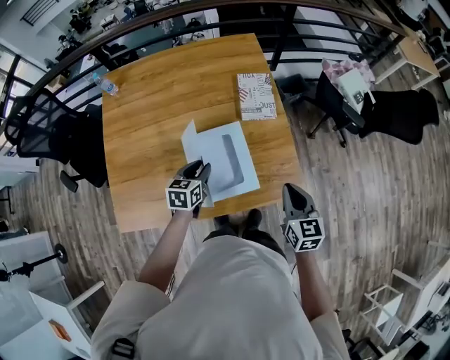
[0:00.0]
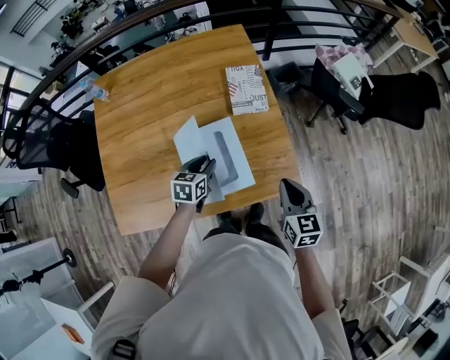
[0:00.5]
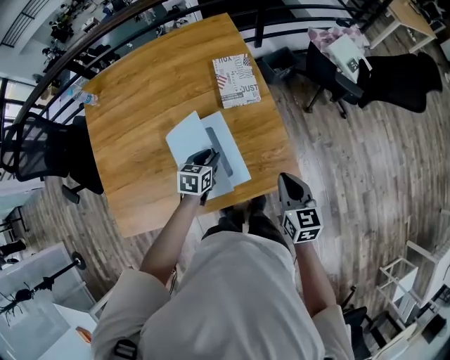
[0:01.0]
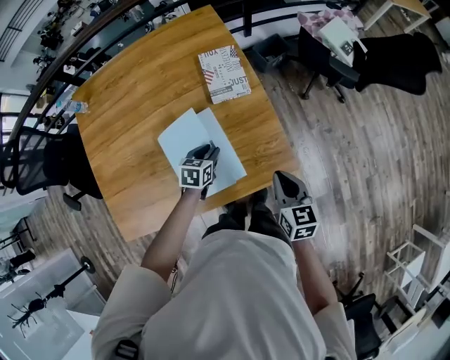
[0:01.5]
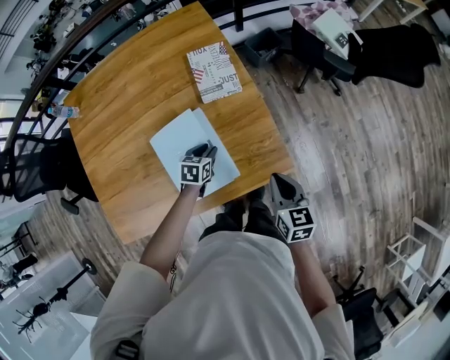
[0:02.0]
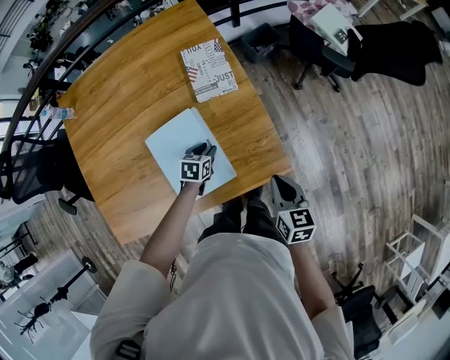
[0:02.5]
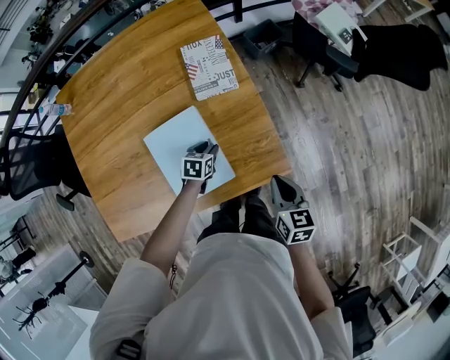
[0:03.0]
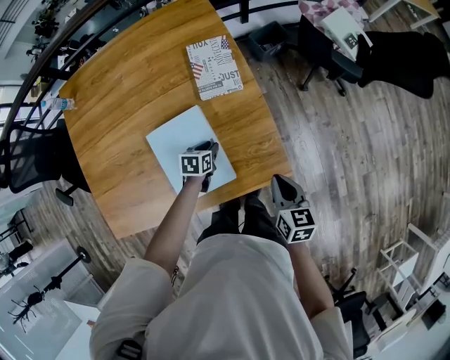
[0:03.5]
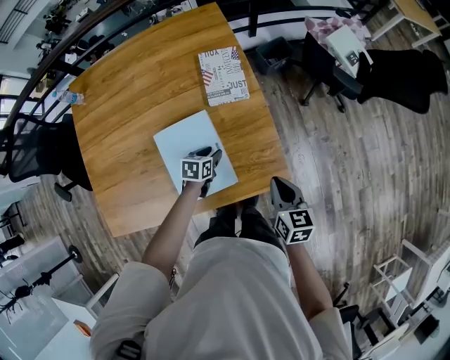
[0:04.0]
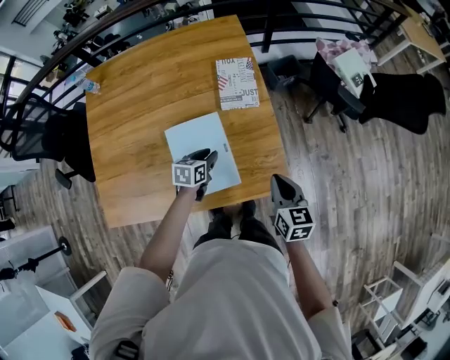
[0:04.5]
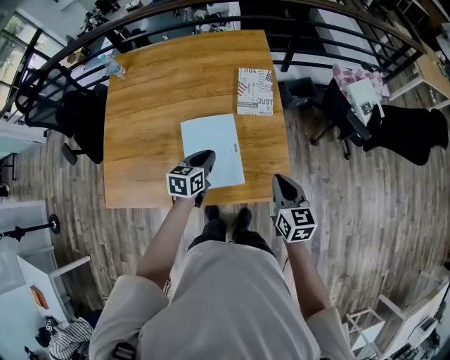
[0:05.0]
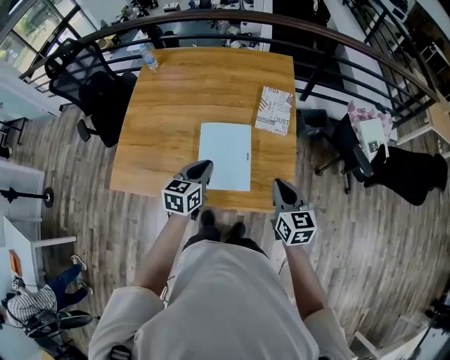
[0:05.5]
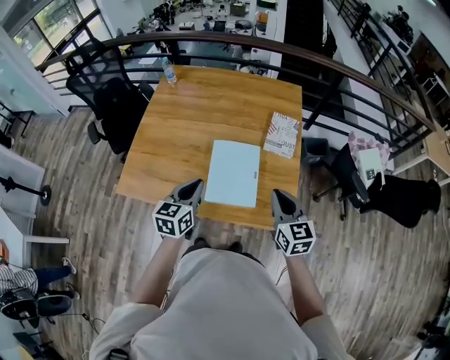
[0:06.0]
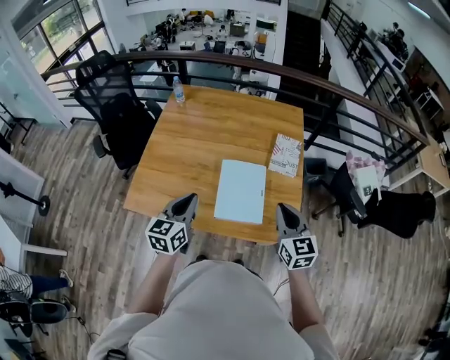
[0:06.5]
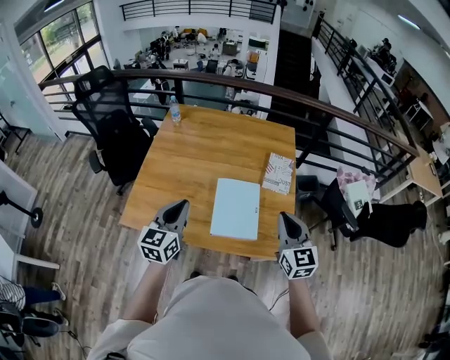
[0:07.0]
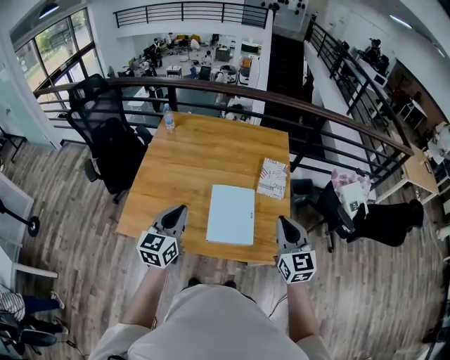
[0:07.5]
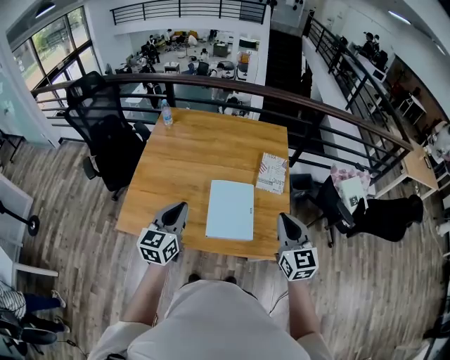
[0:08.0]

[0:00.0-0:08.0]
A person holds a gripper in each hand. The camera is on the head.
0:00.0 to 0:02.0: The right gripper goes roughly 10 cm downward and to the right. Meanwhile the left gripper heads downward, to the right and forward, covering approximately 20 cm, and rotates approximately 20 degrees.
0:02.0 to 0:04.0: There are only small adjustments of the grippers.
0:04.0 to 0:06.0: The left gripper heads upward, covering some 30 cm, points its fingers approximately 30 degrees further upward, and closes. Meanwhile the right gripper travels upward by roughly 15 cm, and swivels about 40 degrees.
0:06.0 to 0:08.0: The right gripper is displaced upward by approximately 10 cm. Meanwhile the left gripper goes approximately 15 cm upward and to the left.

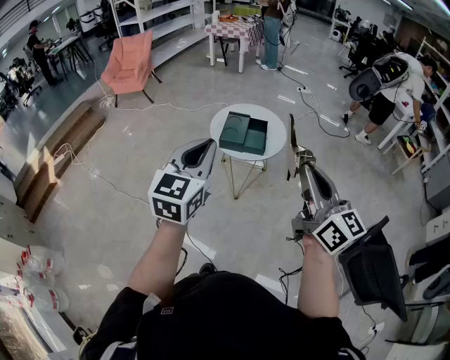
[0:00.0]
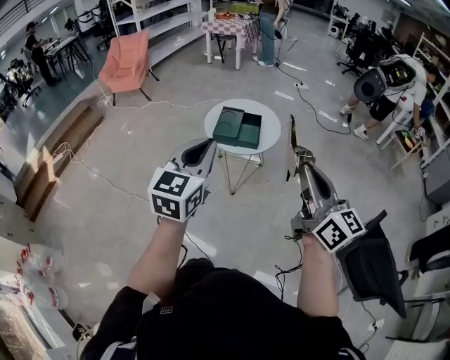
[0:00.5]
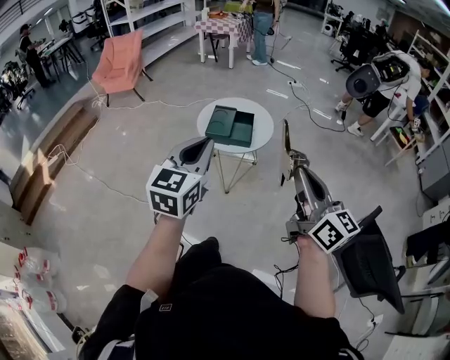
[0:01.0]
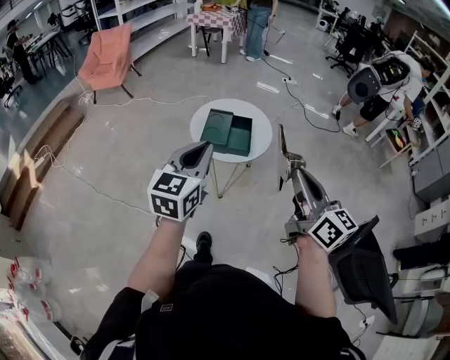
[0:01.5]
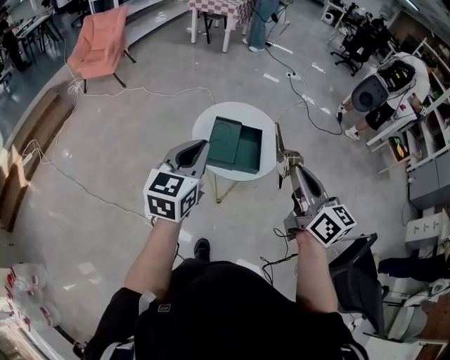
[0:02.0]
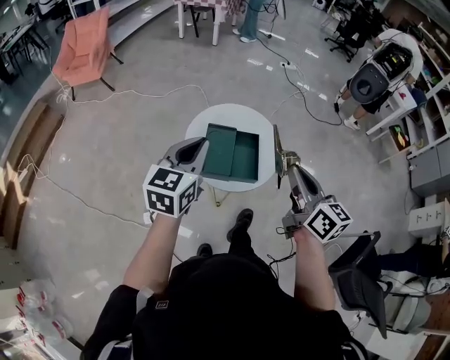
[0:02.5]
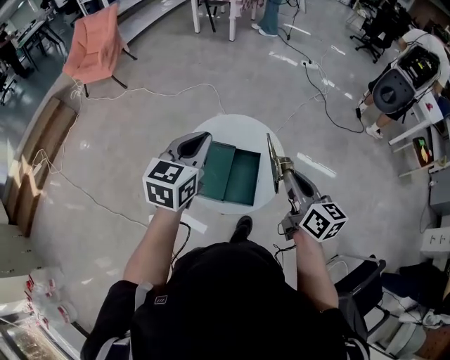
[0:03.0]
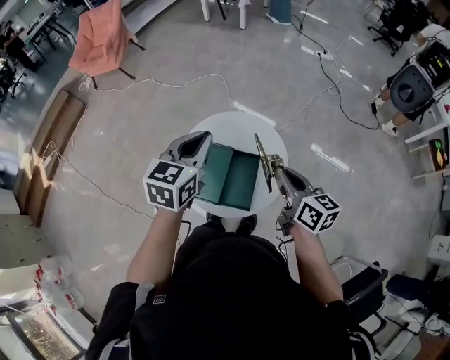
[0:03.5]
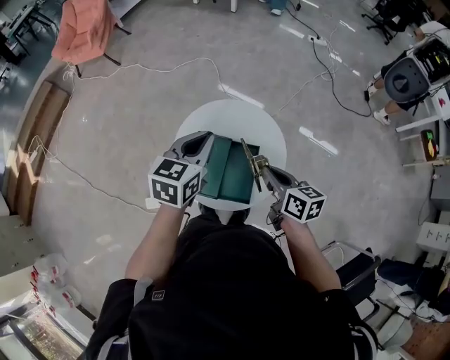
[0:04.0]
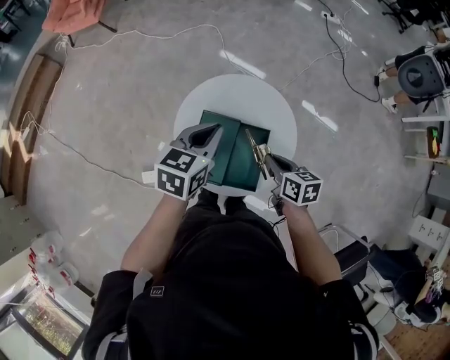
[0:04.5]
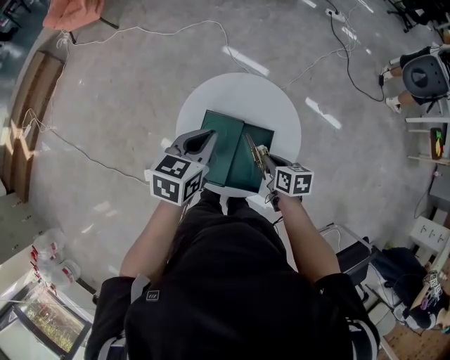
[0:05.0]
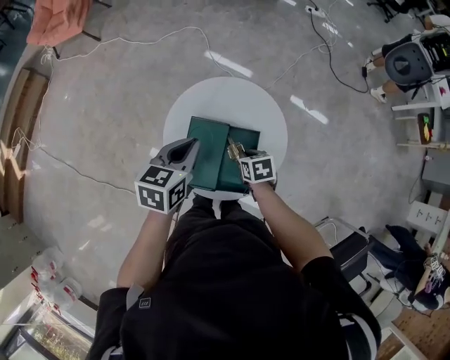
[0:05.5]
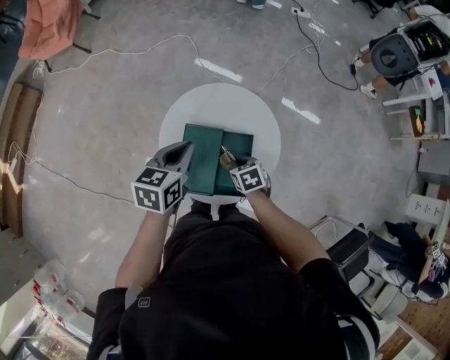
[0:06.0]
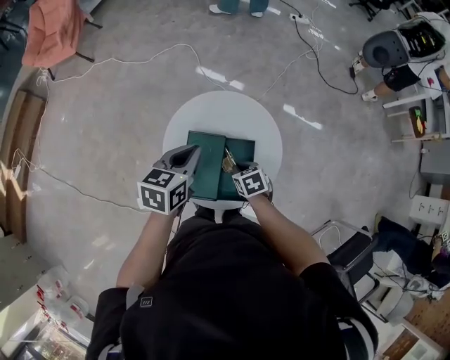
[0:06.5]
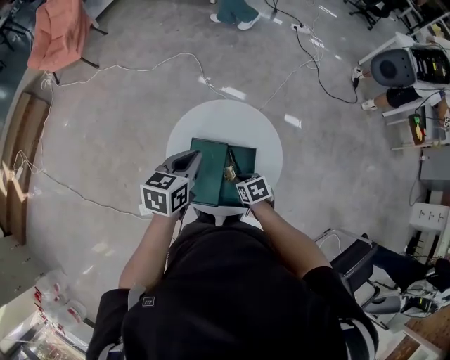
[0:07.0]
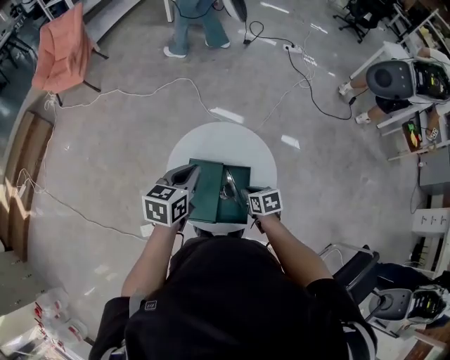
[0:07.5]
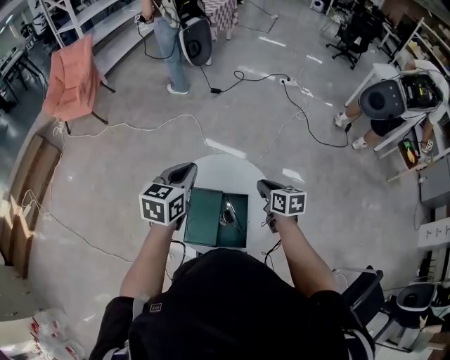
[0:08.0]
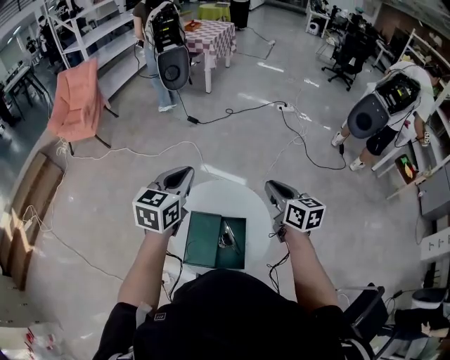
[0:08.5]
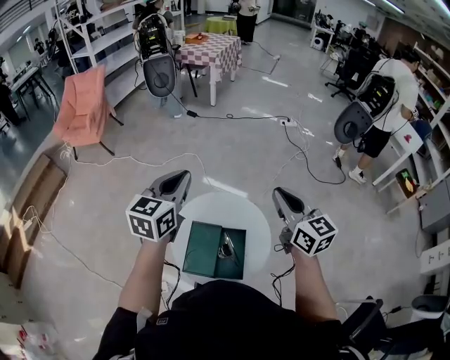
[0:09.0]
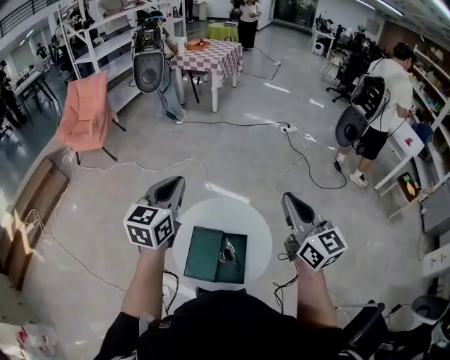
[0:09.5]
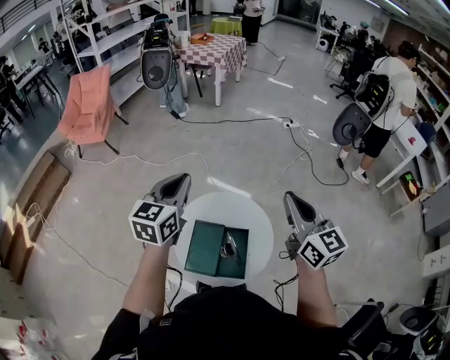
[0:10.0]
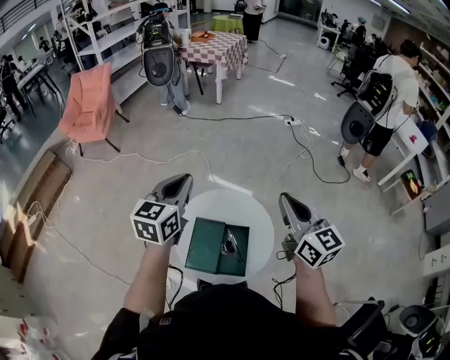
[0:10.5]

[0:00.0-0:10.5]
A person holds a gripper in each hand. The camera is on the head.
0:00.0 to 0:02.0: The two grippers go about 25 cm forward.
0:02.0 to 0:04.0: The left gripper is displaced forward, downward and to the right by roughly 30 cm, while the right gripper is displaced forward and downward by about 35 cm, and rotates about 30 degrees.
0:04.0 to 0:06.5: The right gripper moves downward, about 20 cm, and points its fingers some 40 degrees further downward, while the left gripper heads downward, covering roughly 10 cm.
0:06.5 to 0:08.5: The right gripper heads upward, covering some 30 cm, and tilts its fingers about 40 degrees upward, while the left gripper is displaced upward and forward by some 20 cm, and rotates approximately 20 degrees.
0:08.5 to 0:10.5: The right gripper travels upward and backward by some 15 cm, and rotates approximately 20 degrees.

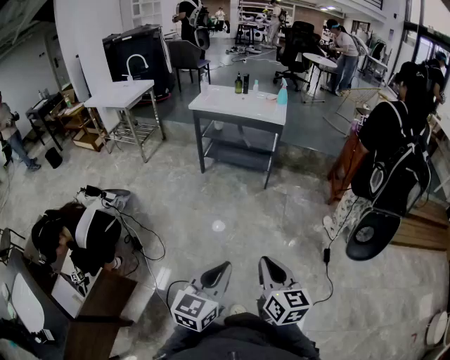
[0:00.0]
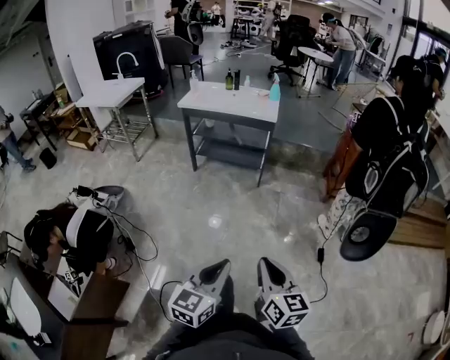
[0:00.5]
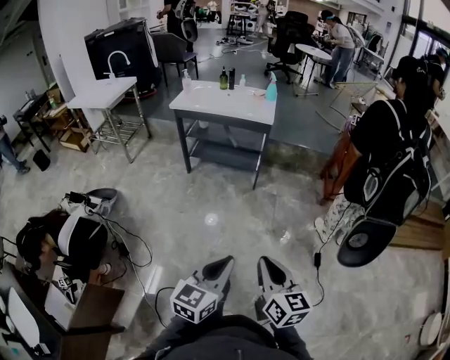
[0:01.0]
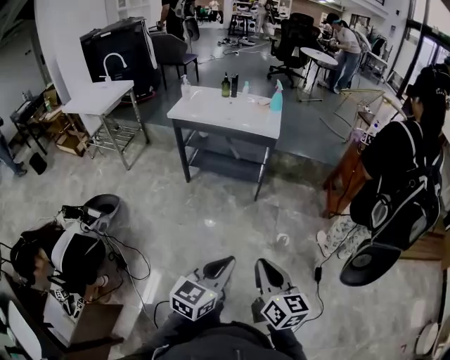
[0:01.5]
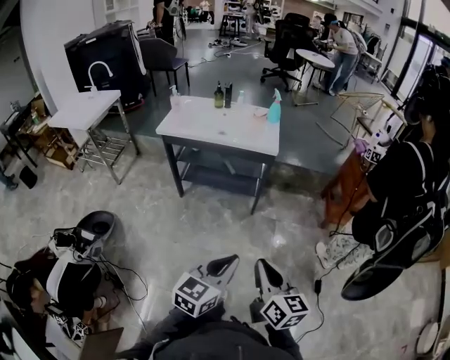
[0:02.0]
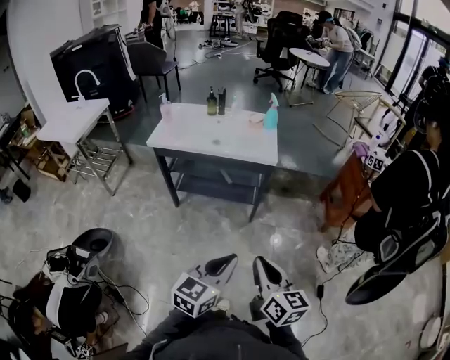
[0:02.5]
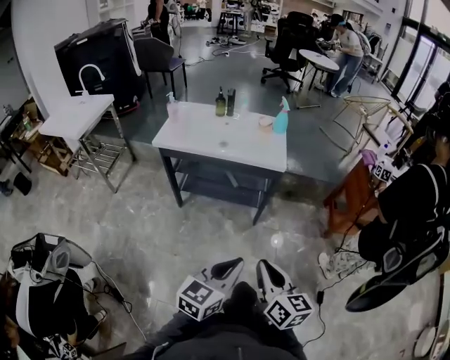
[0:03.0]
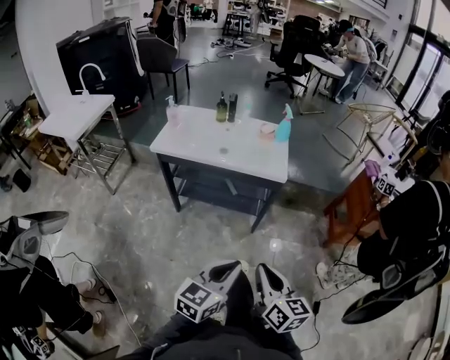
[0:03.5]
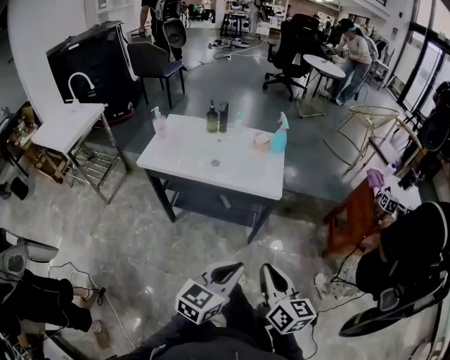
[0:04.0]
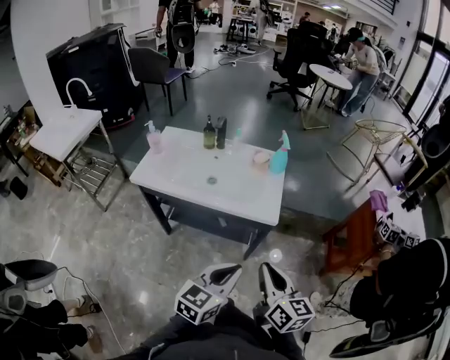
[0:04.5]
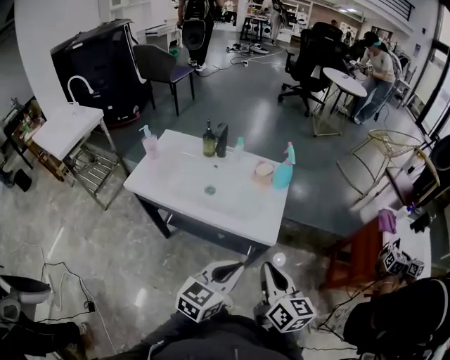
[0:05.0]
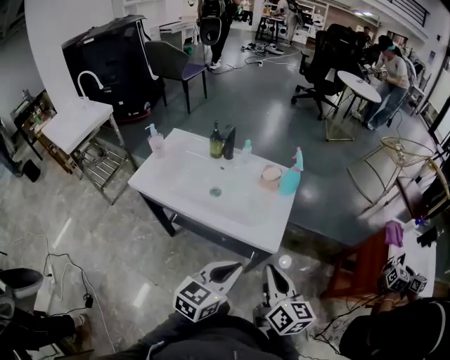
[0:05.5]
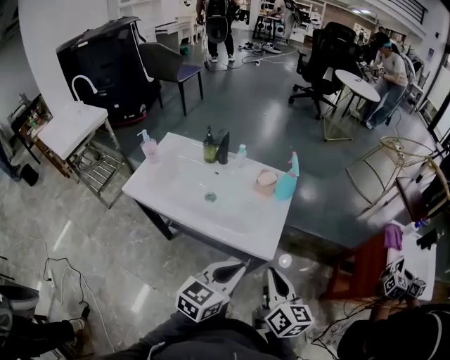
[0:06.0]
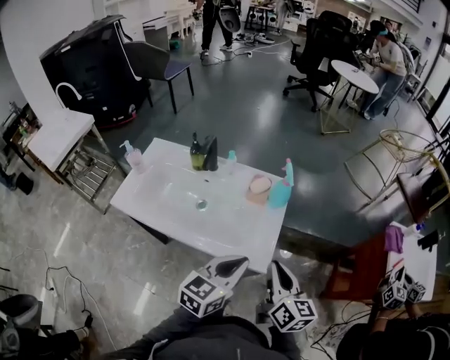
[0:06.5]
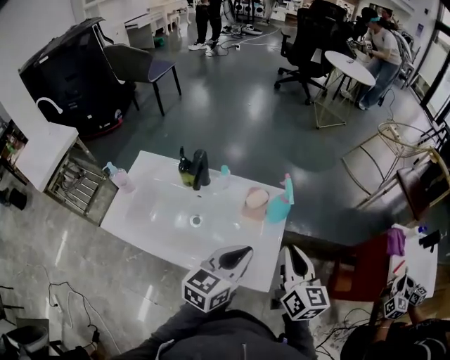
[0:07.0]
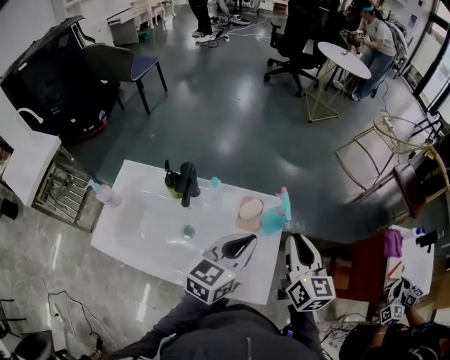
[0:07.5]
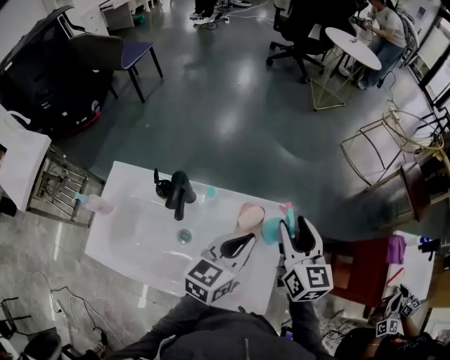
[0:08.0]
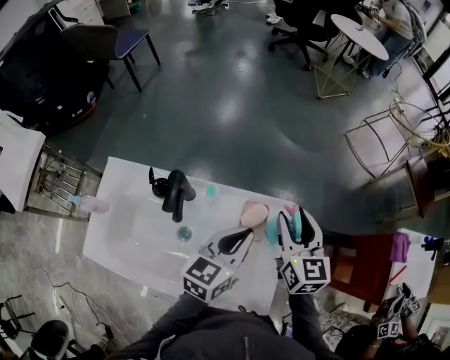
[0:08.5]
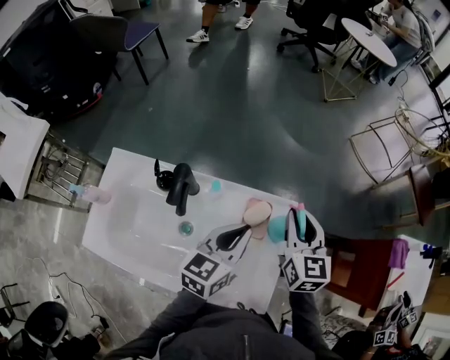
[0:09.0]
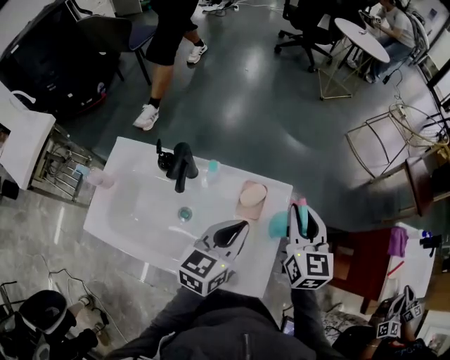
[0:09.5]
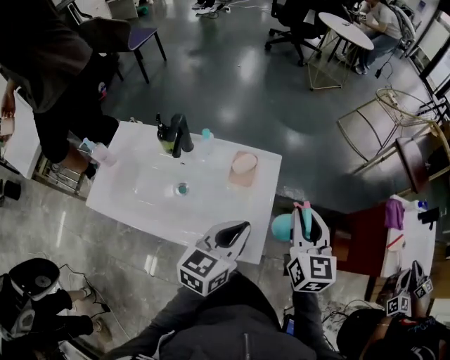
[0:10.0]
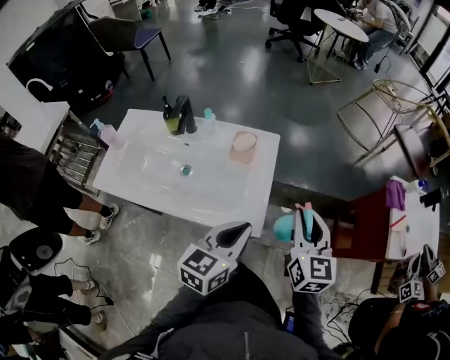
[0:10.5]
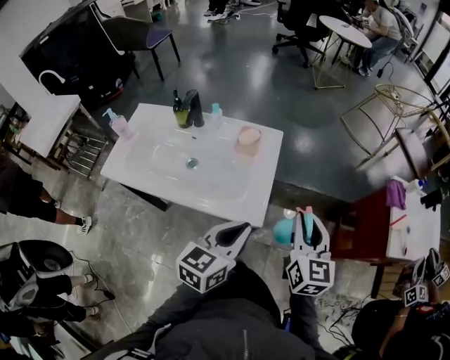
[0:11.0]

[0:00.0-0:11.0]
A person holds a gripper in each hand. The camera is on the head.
0:00.0 to 0:02.0: The two grippers go some 35 cm forward.
0:02.0 to 0:03.5: The two grippers go roughly 15 cm forward.
0:03.5 to 0:05.5: Both grippers travel together forward, some 35 cm.
0:05.5 to 0:07.5: Both grippers move forward, approximately 30 cm.
0:07.5 to 0:09.0: The right gripper shifts roughly 15 cm forward and to the left, and opens, then closes once more; the left gripper moves forward and downward, some 10 cm.
0:09.0 to 0:11.0: The grippers both shift backward and to the right by roughly 30 cm.
